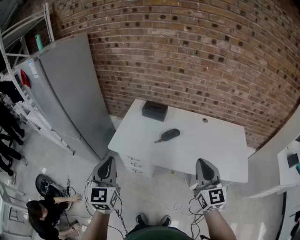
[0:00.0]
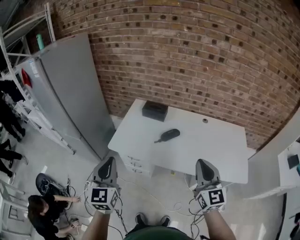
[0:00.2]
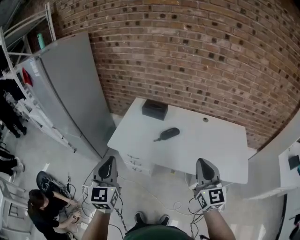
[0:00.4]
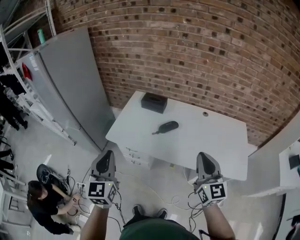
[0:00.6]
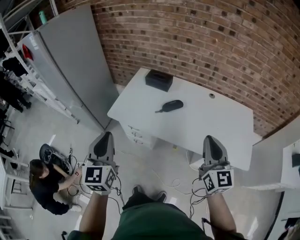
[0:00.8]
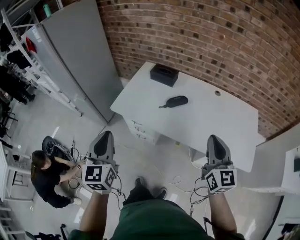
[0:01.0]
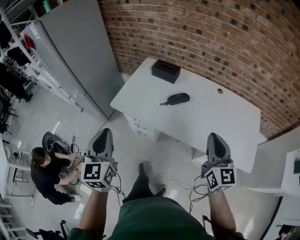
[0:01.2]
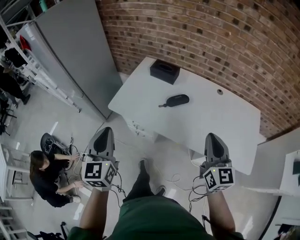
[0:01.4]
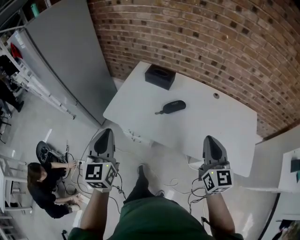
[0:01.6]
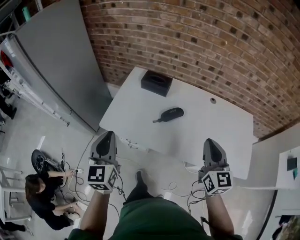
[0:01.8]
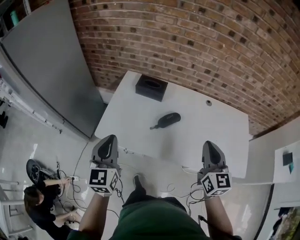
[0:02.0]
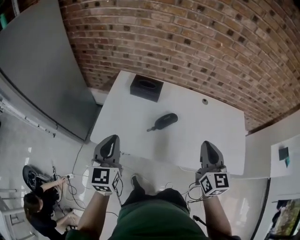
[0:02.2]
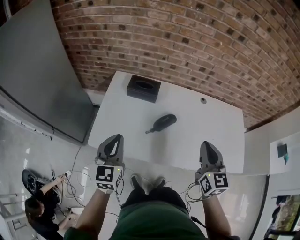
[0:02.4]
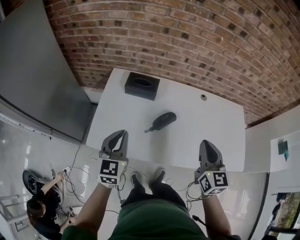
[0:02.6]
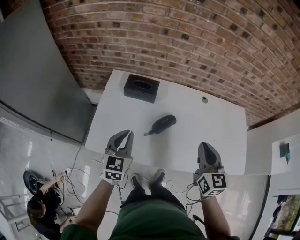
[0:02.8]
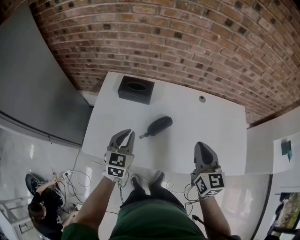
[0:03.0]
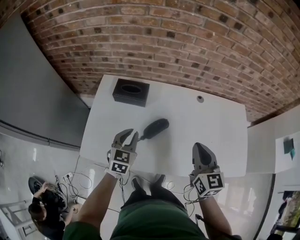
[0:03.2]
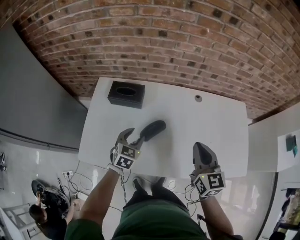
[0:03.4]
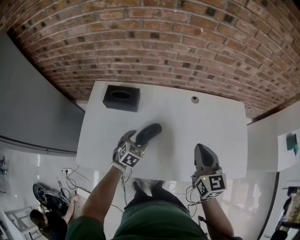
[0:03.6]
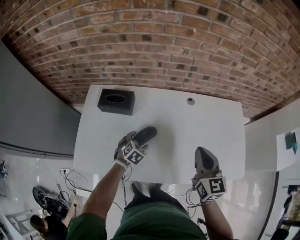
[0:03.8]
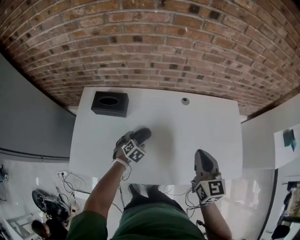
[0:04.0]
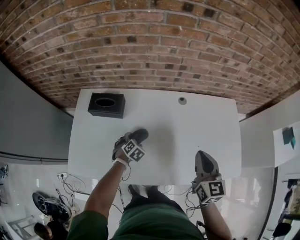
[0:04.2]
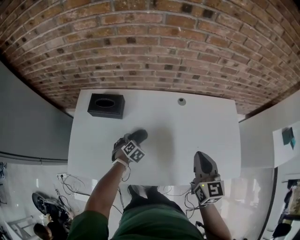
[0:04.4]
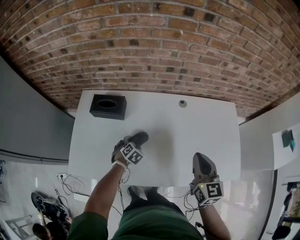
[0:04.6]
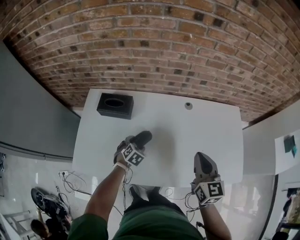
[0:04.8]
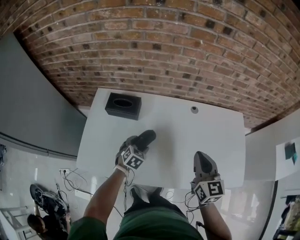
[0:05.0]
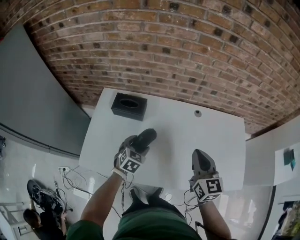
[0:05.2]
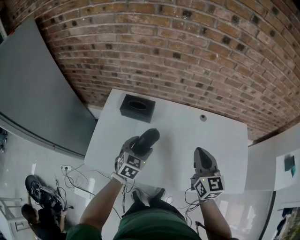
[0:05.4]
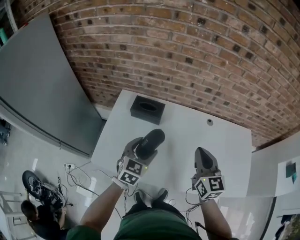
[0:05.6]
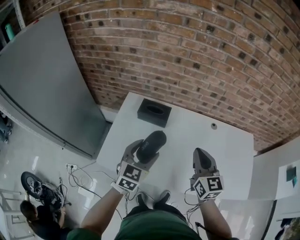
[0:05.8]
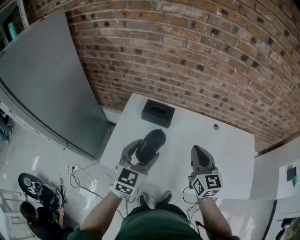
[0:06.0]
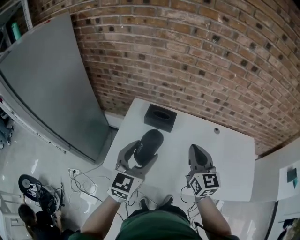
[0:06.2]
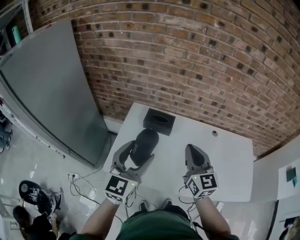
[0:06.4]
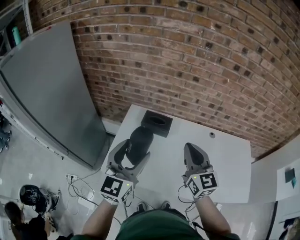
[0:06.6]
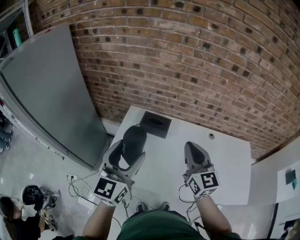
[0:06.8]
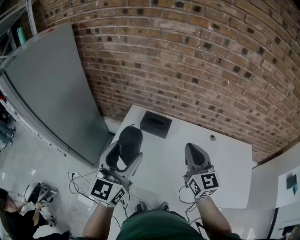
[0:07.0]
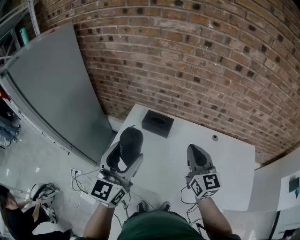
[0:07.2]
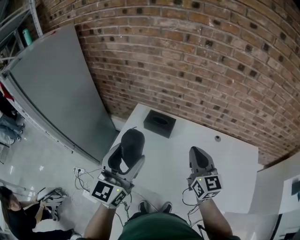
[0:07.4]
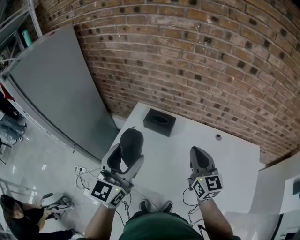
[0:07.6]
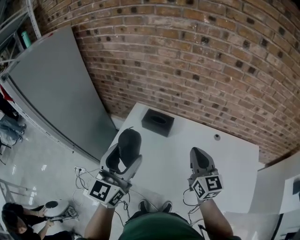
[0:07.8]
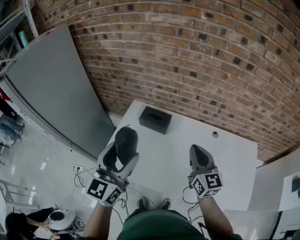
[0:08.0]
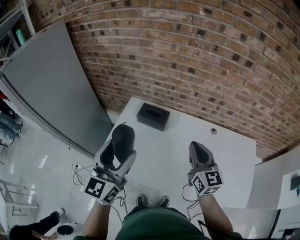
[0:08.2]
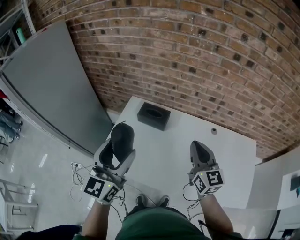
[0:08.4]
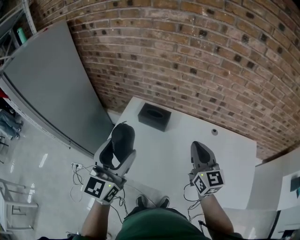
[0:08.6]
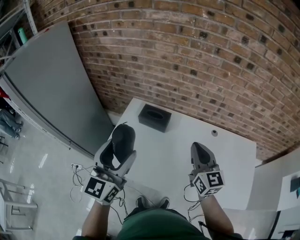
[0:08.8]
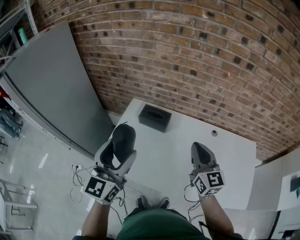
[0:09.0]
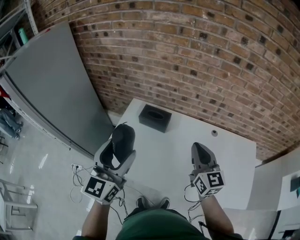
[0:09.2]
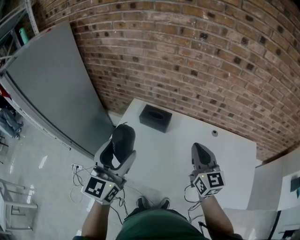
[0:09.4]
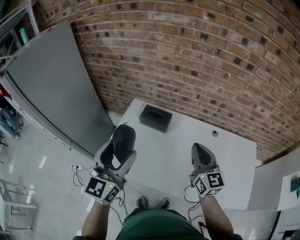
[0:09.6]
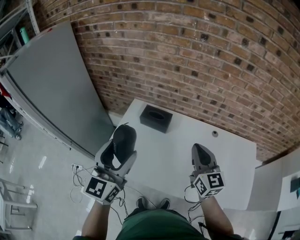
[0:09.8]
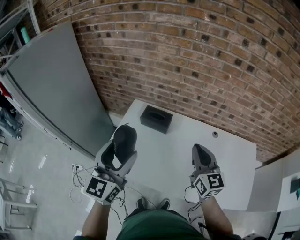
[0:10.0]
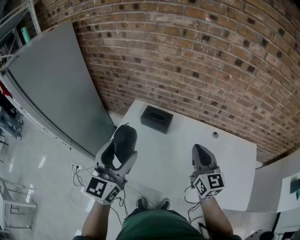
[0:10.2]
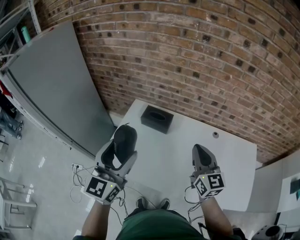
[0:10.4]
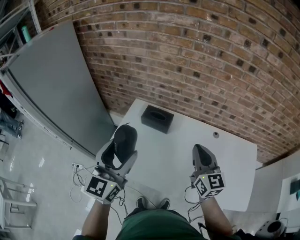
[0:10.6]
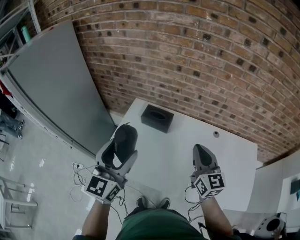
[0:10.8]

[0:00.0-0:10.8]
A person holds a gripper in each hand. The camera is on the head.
0.0 to 1.6 s: The right gripper is displaced forward, downward and to the right by about 10 cm; the left gripper heads downward and forward, covering some 10 cm.
1.6 to 3.0 s: The right gripper is displaced forward and downward by about 15 cm; the left gripper travels forward and downward by roughly 30 cm, and turns by about 30 degrees.
3.0 to 4.6 s: The left gripper travels downward, to the right and forward by approximately 25 cm, angles its fingers downward, by roughly 40 degrees, and opens up; the right gripper is displaced to the right by approximately 15 cm.
4.6 to 6.2 s: The left gripper shifts approximately 40 cm upward and to the left, and angles its fingers upward, by about 60 degrees. Meanwhile the right gripper goes some 30 cm to the left.
6.2 to 7.8 s: The right gripper is displaced to the right by about 10 cm, while the left gripper travels upward by about 10 cm.
7.8 to 9.2 s: There are only small adjustments of the grippers.
9.2 to 10.8 s: Both grippers stay about where they are.

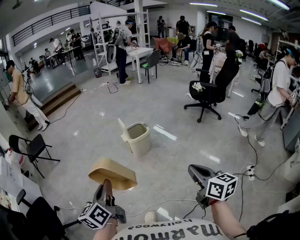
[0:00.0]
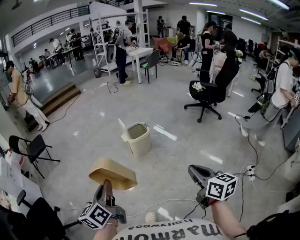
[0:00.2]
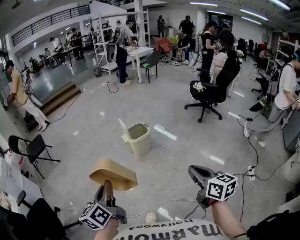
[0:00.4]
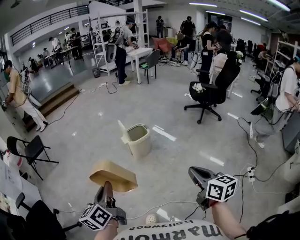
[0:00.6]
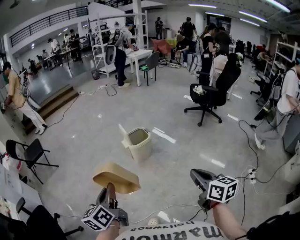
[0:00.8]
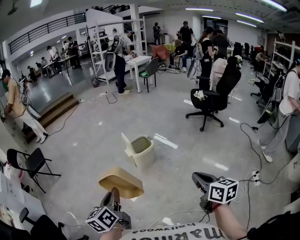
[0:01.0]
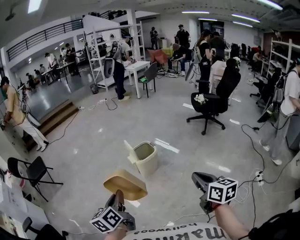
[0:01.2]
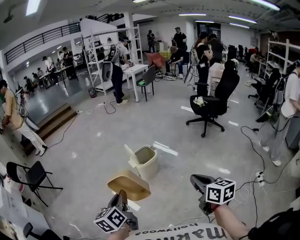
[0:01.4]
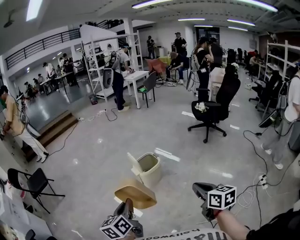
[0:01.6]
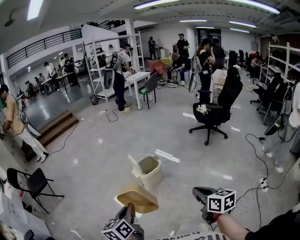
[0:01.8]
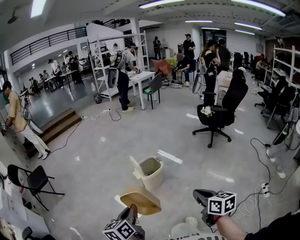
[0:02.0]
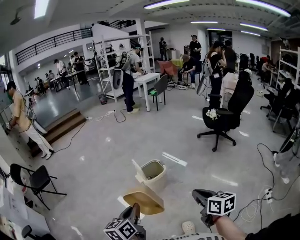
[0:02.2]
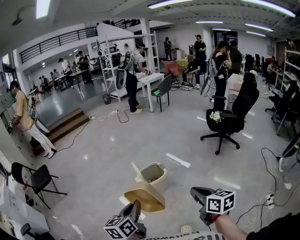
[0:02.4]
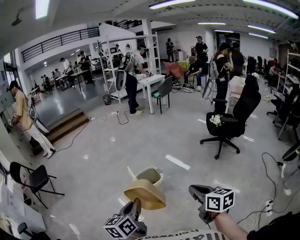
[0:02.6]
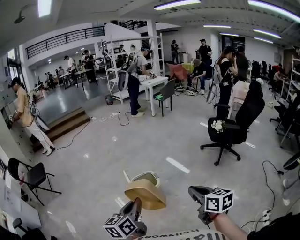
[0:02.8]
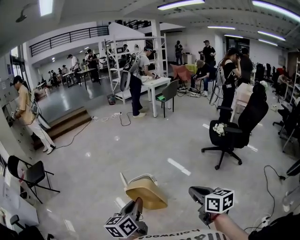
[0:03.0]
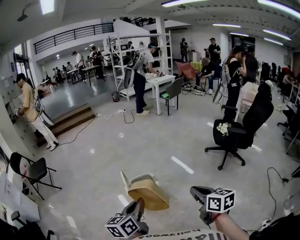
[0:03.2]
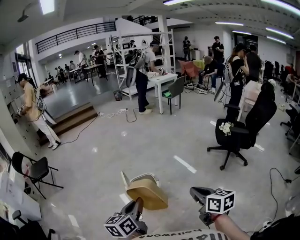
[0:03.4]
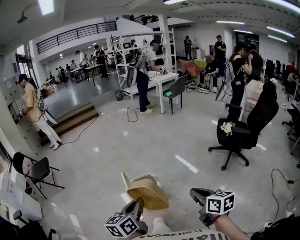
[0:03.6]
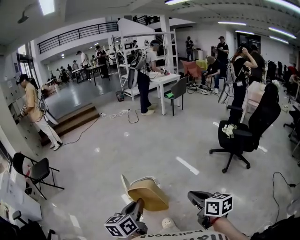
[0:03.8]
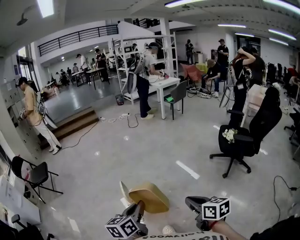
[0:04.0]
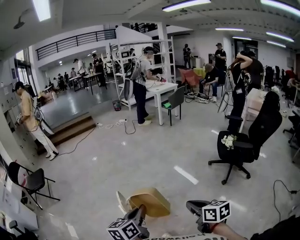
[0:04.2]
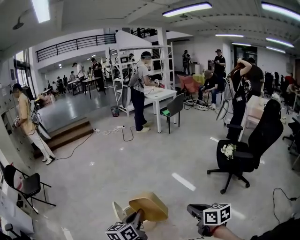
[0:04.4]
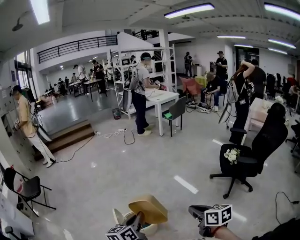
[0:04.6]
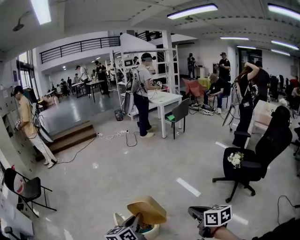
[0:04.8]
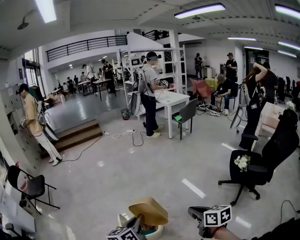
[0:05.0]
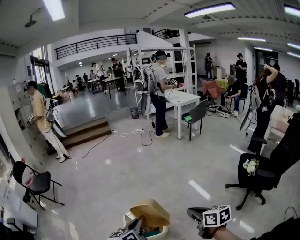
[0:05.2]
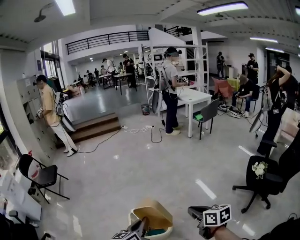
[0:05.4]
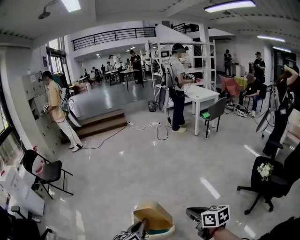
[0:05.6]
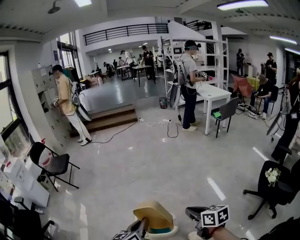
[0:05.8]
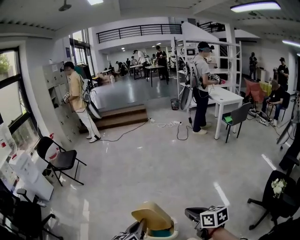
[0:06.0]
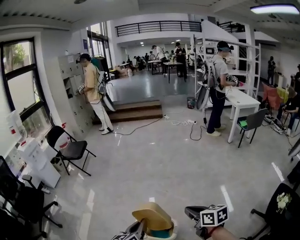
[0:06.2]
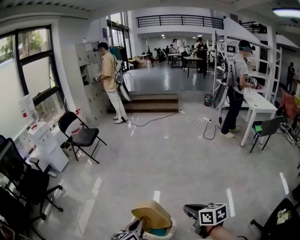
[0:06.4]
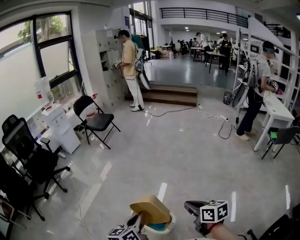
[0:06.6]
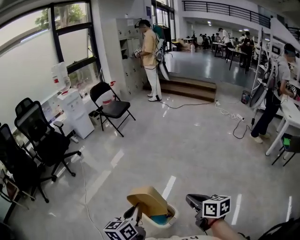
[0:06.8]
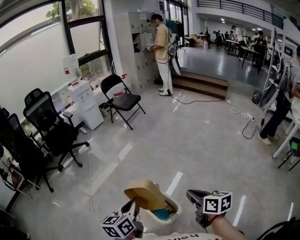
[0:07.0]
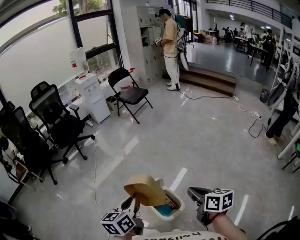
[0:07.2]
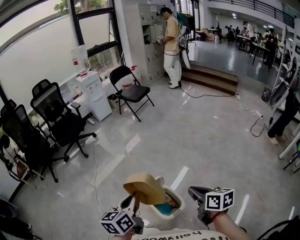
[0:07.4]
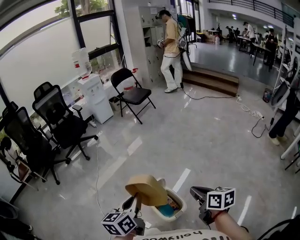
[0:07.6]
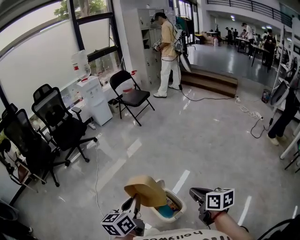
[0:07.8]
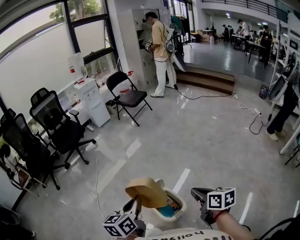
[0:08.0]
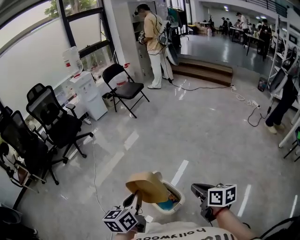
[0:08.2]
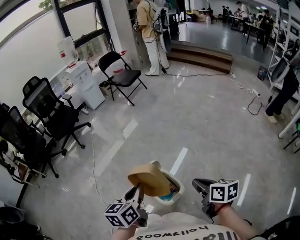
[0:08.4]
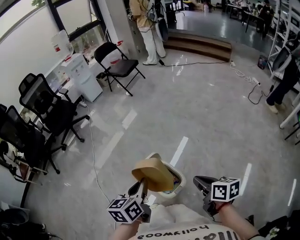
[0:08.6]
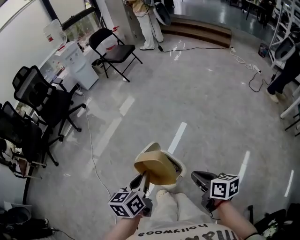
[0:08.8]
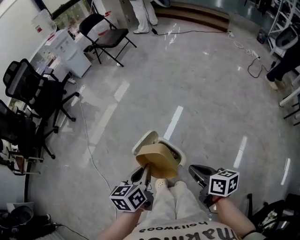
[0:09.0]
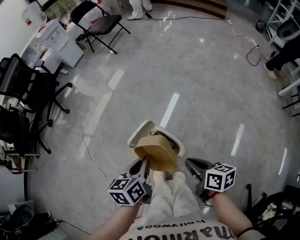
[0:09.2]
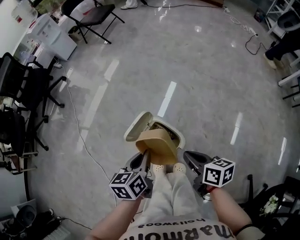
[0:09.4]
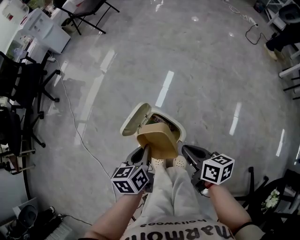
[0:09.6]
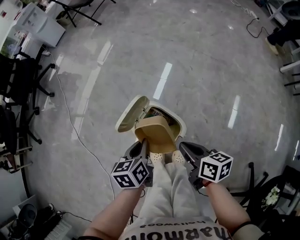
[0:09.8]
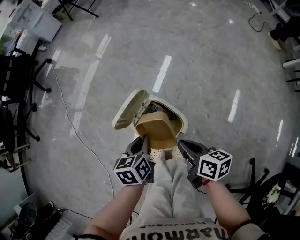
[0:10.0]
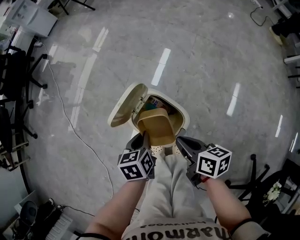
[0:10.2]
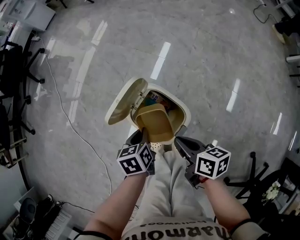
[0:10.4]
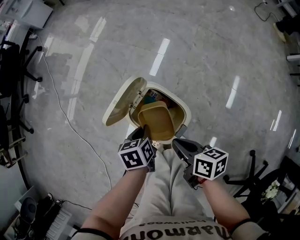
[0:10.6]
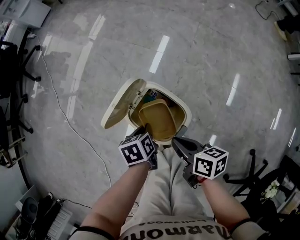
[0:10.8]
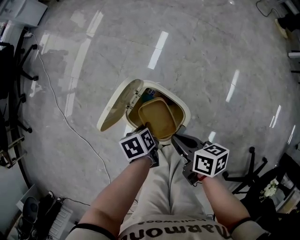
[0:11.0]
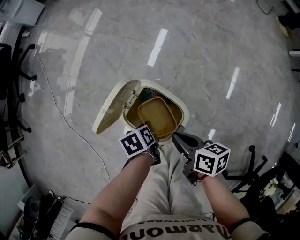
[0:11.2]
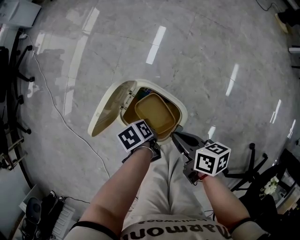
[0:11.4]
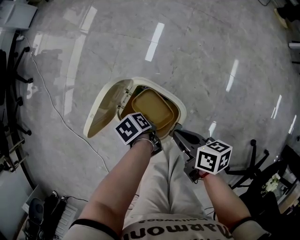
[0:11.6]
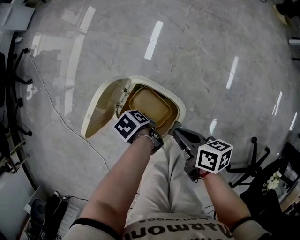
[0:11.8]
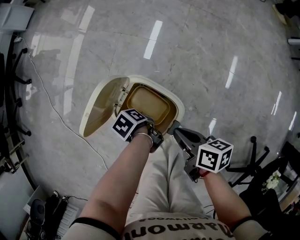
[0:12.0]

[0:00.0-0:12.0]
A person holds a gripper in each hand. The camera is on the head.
0.0 to 1.6 s: The right gripper moves forward and to the left, about 15 cm. Meanwhile the left gripper shifts approximately 20 cm forward.
1.6 to 3.0 s: The left gripper moves to the right and forward, about 30 cm, while the right gripper moves forward and to the right, about 30 cm.
3.0 to 4.4 s: Both grippers move forward and to the right, about 20 cm.
4.4 to 6.0 s: The right gripper ends up roughly 30 cm from where it was, and changes its angle by about 30 degrees. The left gripper changes place by roughly 15 cm, and changes its angle by some 30 degrees.
6.0 to 7.6 s: The left gripper ends up approximately 5 cm from where it was, and changes its angle by about 40 degrees. The right gripper changes place by approximately 15 cm, and rotates about 40 degrees.
7.6 to 9.0 s: The left gripper goes some 15 cm downward and to the right. Meanwhile the right gripper is displaced downward and backward by some 15 cm.
9.0 to 10.4 s: The two grippers go about 25 cm downward. The left gripper swivels about 30 degrees.
10.4 to 12.0 s: The left gripper moves downward, approximately 10 cm, and swivels roughly 50 degrees. The right gripper changes place by about 5 cm.

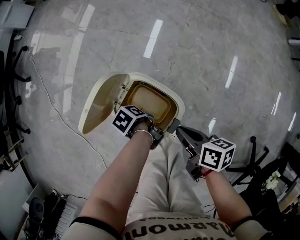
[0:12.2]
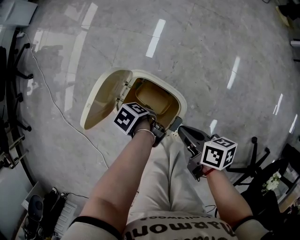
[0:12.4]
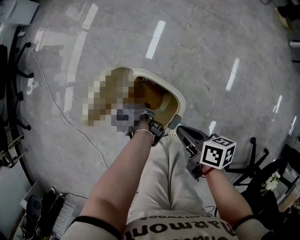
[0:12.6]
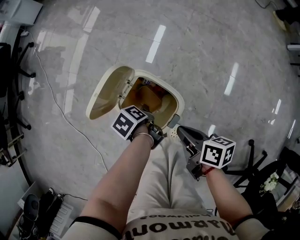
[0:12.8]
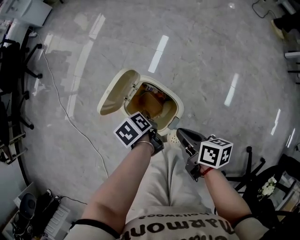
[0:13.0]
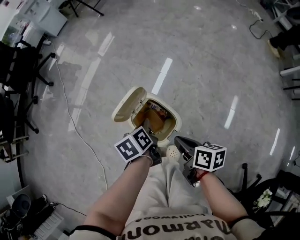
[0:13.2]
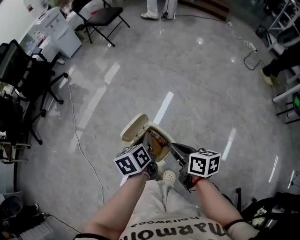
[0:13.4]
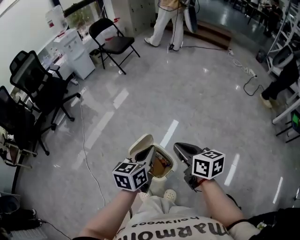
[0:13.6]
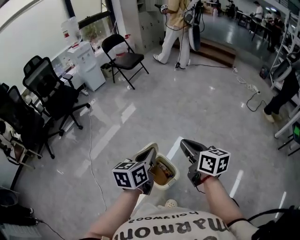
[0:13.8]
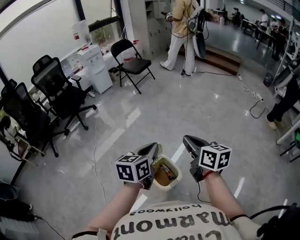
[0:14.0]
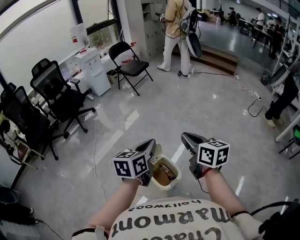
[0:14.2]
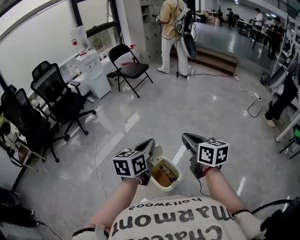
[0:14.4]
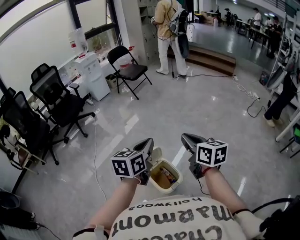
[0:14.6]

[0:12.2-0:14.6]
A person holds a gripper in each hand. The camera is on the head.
12.2 to 13.4 s: The right gripper goes approximately 20 cm upward, and swivels some 20 degrees. Meanwhile the left gripper is displaced upward by some 35 cm, tips its fingers upward by roughly 40 degrees, and opens, then closes once more.
13.4 to 14.6 s: The two grippers go approximately 25 cm upward. The left gripper changes its angle by about 30 degrees. Meanwhile the right gripper turns by roughly 30 degrees.
